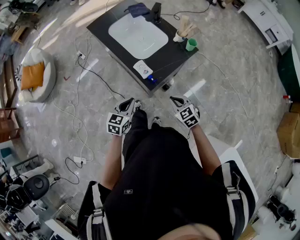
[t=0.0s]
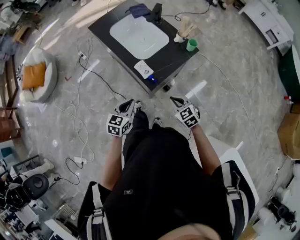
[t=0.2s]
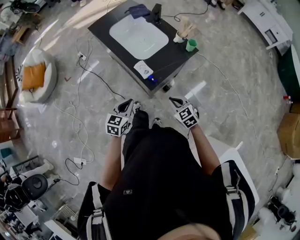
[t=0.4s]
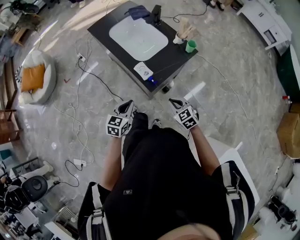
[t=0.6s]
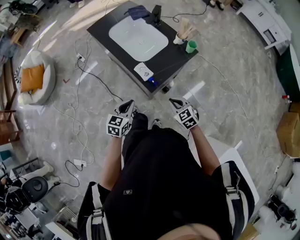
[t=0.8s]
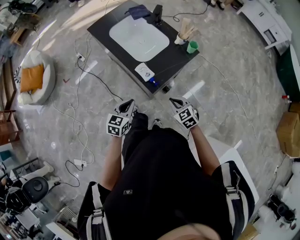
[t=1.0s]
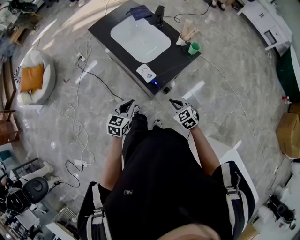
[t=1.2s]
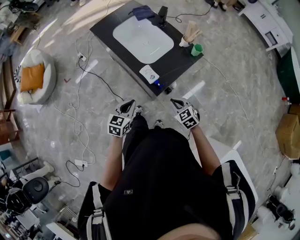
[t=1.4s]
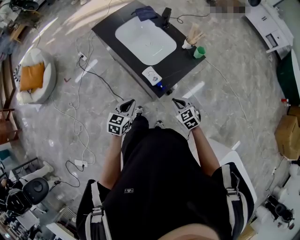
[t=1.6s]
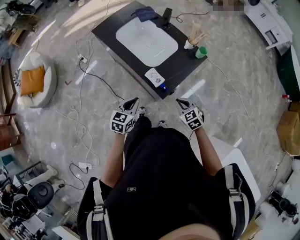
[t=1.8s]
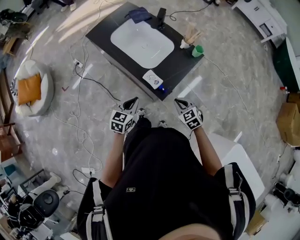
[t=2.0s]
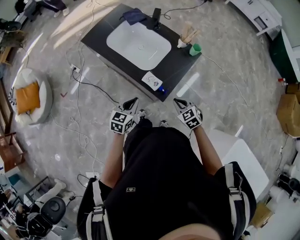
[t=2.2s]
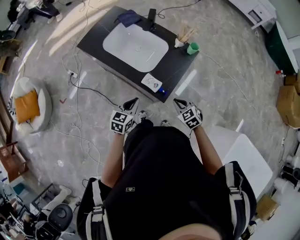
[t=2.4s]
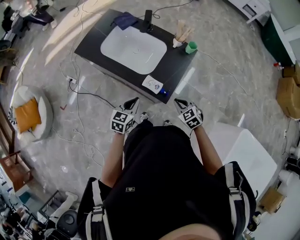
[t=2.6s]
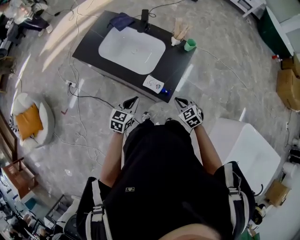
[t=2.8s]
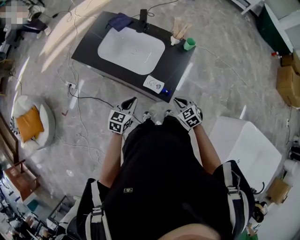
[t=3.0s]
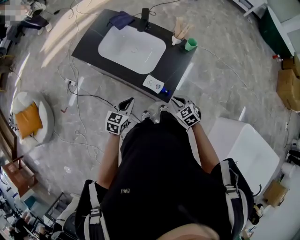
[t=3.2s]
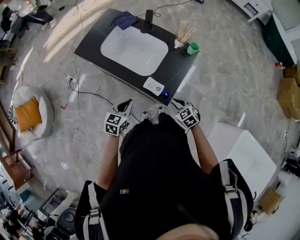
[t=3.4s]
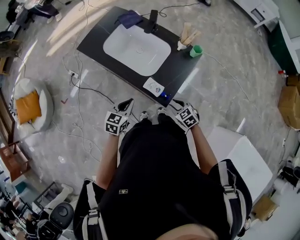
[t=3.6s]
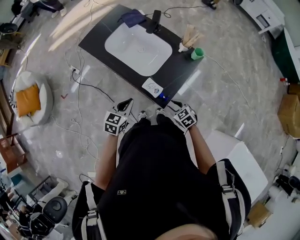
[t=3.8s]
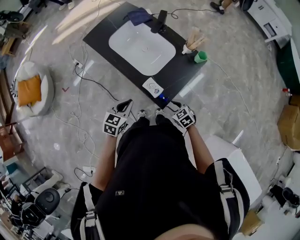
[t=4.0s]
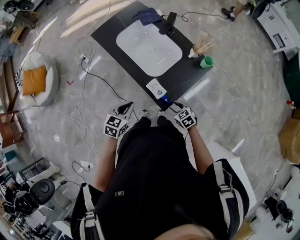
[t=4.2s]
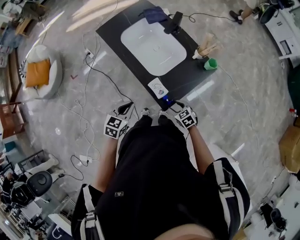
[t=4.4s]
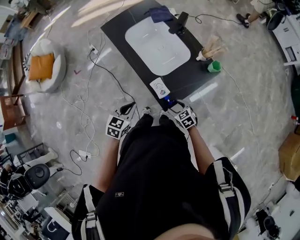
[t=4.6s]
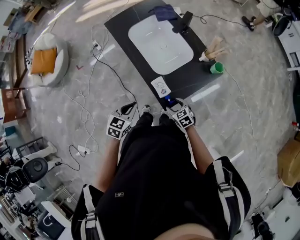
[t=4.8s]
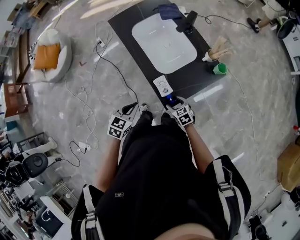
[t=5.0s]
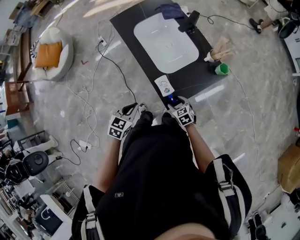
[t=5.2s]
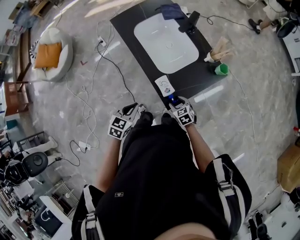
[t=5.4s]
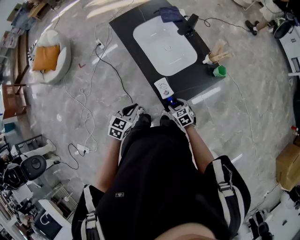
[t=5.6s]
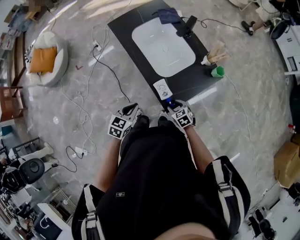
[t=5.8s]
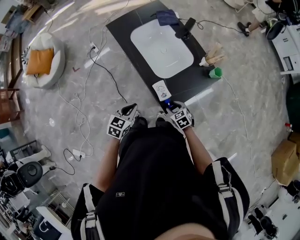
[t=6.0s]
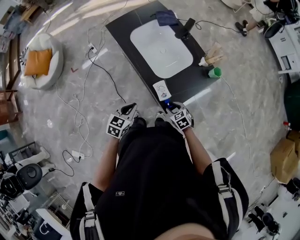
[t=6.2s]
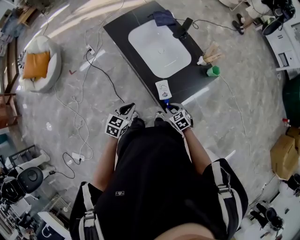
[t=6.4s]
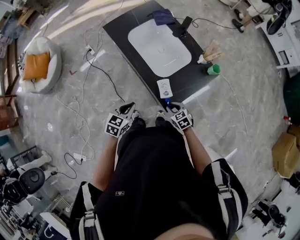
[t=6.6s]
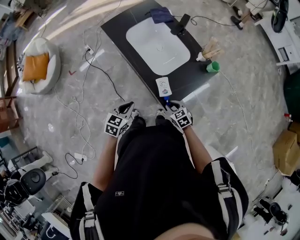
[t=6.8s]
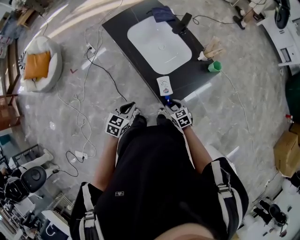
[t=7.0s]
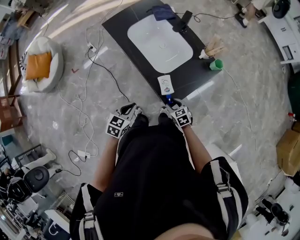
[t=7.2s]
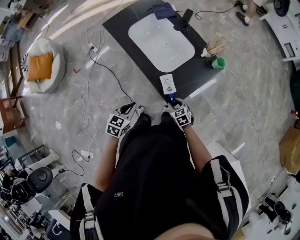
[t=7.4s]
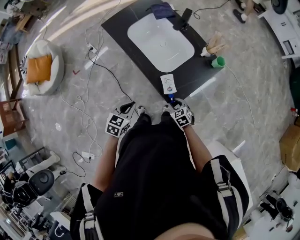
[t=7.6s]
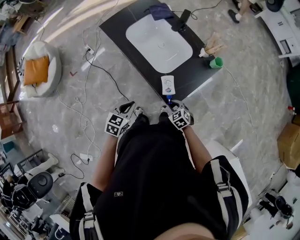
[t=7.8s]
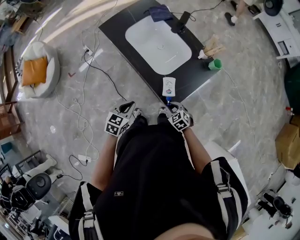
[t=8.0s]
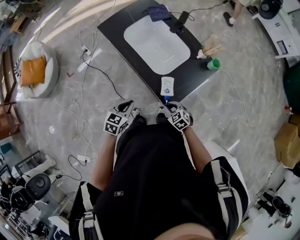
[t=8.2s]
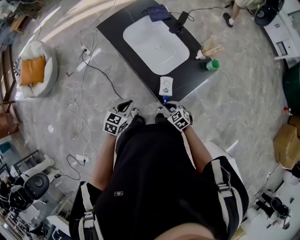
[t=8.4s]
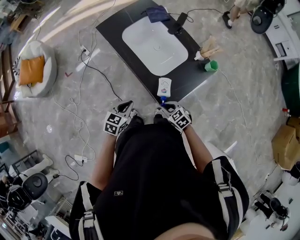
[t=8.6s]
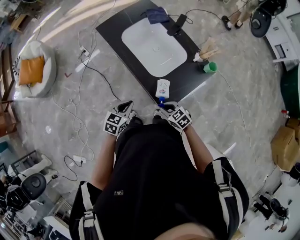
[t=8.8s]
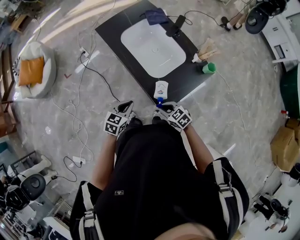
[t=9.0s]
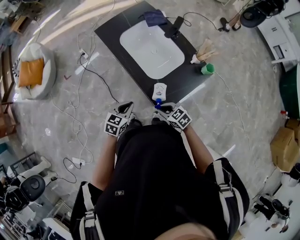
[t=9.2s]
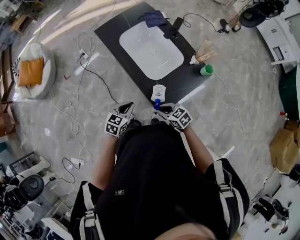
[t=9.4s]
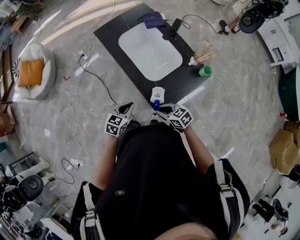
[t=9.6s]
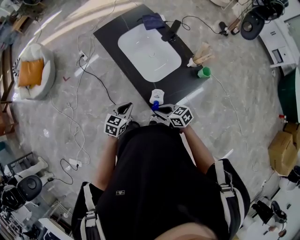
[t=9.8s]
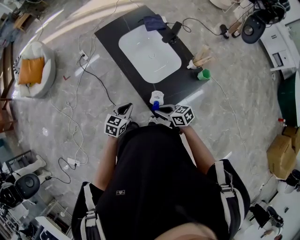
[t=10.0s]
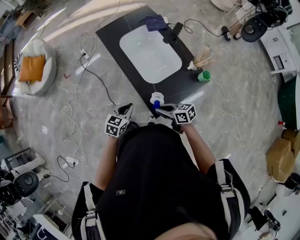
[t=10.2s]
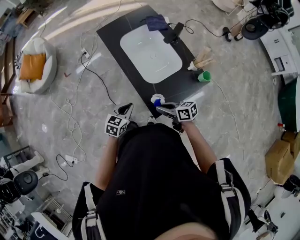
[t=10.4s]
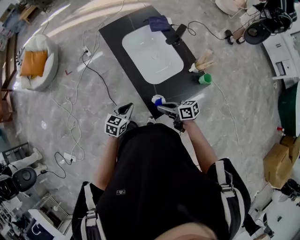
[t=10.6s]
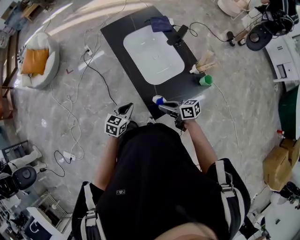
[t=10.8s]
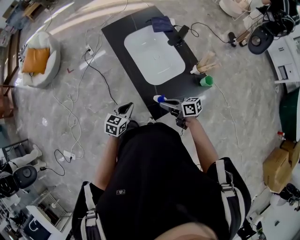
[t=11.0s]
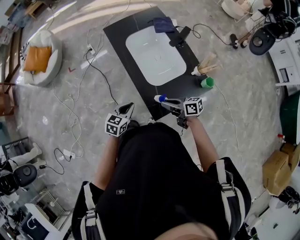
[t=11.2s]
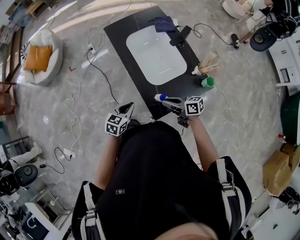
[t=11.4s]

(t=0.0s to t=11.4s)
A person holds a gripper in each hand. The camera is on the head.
t=0.0s - t=1.4s: The grippers make only small movements.
t=1.4s - t=2.8s: The left gripper heads forward and to the left, covering roughly 15 cm, and rotates approximately 20 degrees, while the right gripper moves about 5 cm, and swivels about 20 degrees.
t=2.8s - t=4.2s: The right gripper is displaced downward by roughly 10 cm, swivels approximately 20 degrees, and opens its fingers.
t=4.2s - t=5.6s: The right gripper moves approximately 5 cm.
t=5.6s - t=7.2s: The grippers stay close to where they were, moving slightly.
t=7.2s - t=8.6s: The right gripper closes up.
t=8.6s - t=10.0s: The right gripper heads upward, covering roughly 10 cm, and rotates about 30 degrees.
t=10.0s - t=11.4s: The right gripper is displaced to the right and forward by some 10 cm, and rotates approximately 20 degrees.

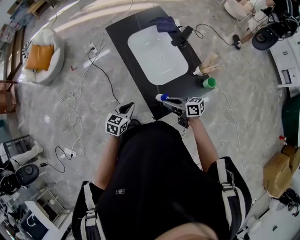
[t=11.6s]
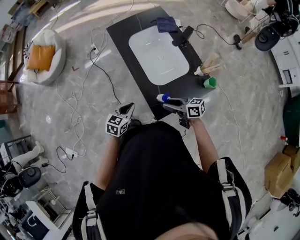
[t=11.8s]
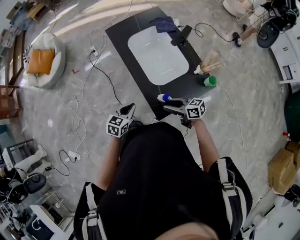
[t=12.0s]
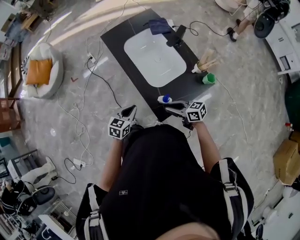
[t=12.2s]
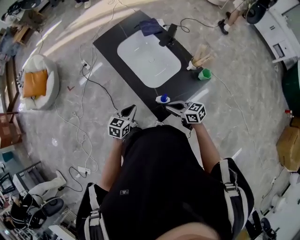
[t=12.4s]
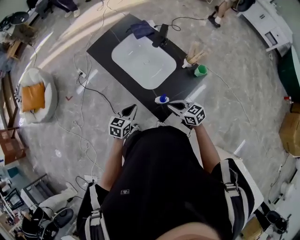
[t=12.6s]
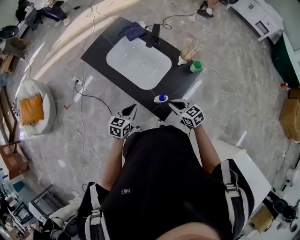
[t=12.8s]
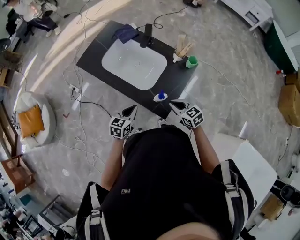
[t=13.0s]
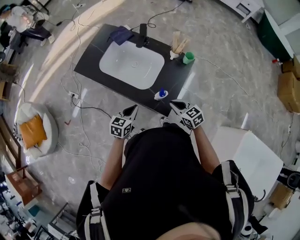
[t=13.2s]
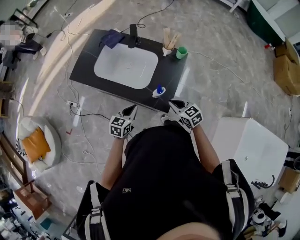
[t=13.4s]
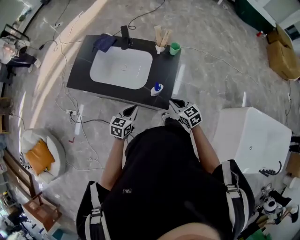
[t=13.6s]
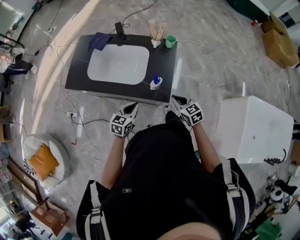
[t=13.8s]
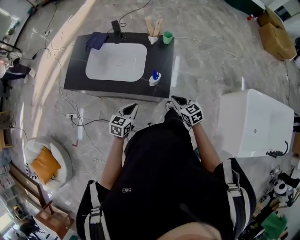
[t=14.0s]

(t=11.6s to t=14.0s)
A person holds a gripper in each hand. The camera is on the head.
t=11.6s - t=12.8s: The right gripper turns by about 40 degrees. Meanwhile the left gripper changes place by roughly 5 cm, and changes its angle by approximately 20 degrees.
t=12.8s - t=14.0s: The right gripper shifts by roughly 10 cm, and changes its angle by some 40 degrees. Meanwhile the left gripper turns by some 30 degrees.

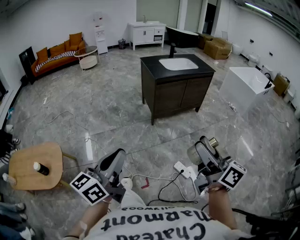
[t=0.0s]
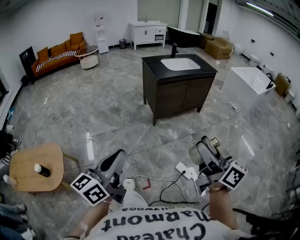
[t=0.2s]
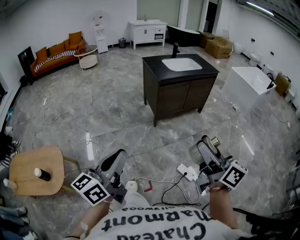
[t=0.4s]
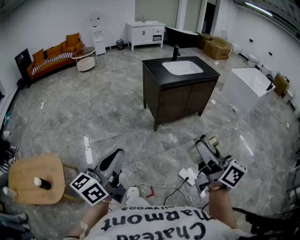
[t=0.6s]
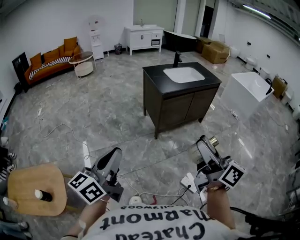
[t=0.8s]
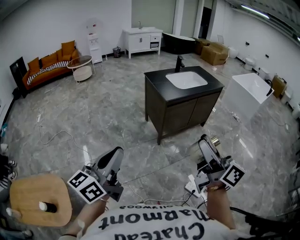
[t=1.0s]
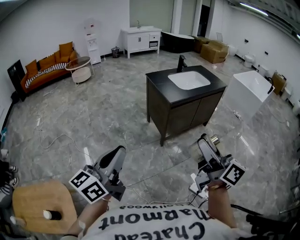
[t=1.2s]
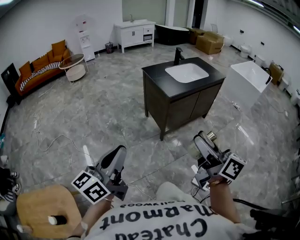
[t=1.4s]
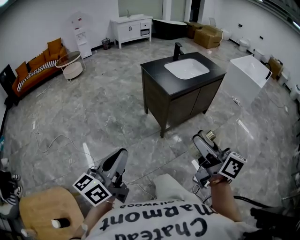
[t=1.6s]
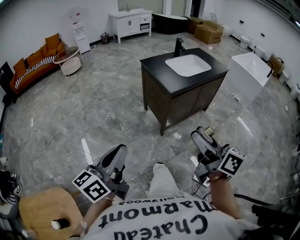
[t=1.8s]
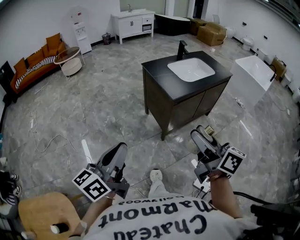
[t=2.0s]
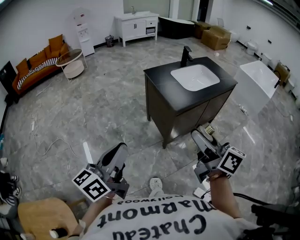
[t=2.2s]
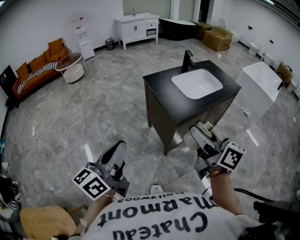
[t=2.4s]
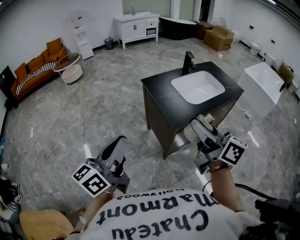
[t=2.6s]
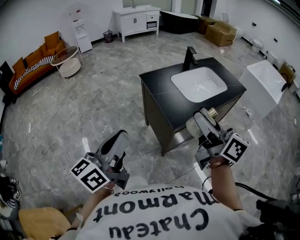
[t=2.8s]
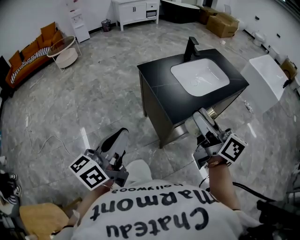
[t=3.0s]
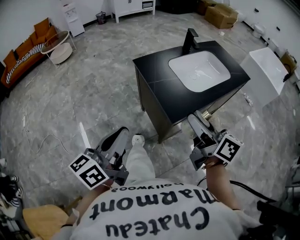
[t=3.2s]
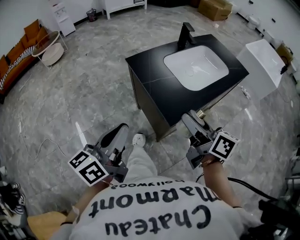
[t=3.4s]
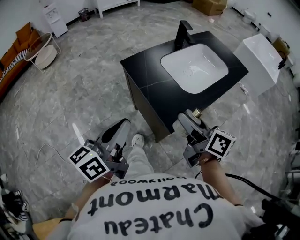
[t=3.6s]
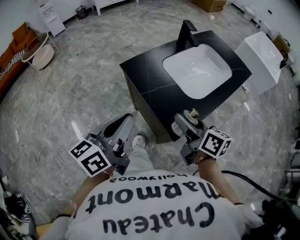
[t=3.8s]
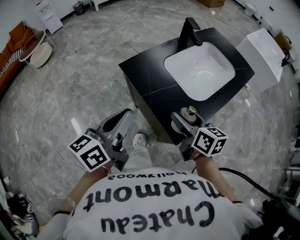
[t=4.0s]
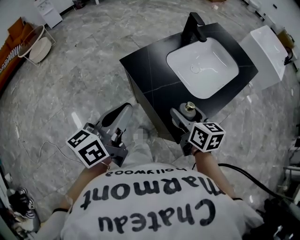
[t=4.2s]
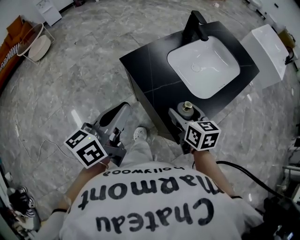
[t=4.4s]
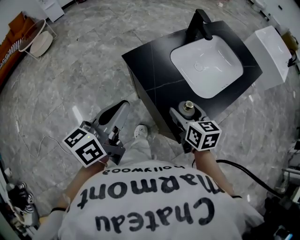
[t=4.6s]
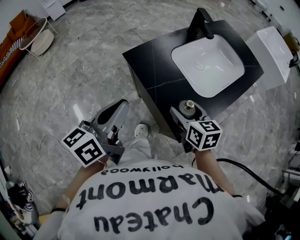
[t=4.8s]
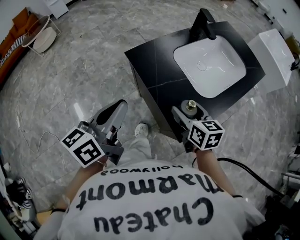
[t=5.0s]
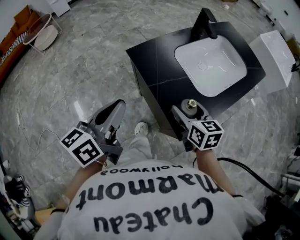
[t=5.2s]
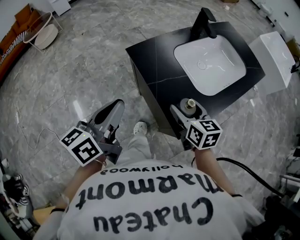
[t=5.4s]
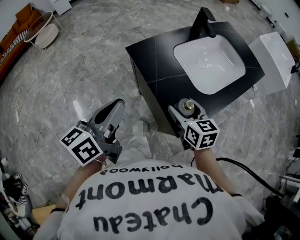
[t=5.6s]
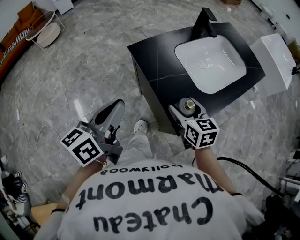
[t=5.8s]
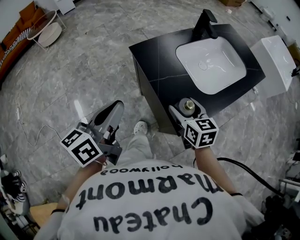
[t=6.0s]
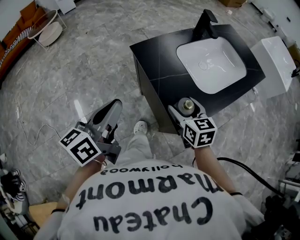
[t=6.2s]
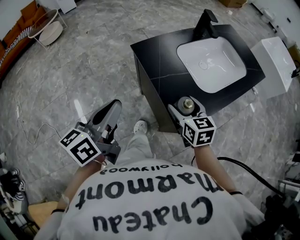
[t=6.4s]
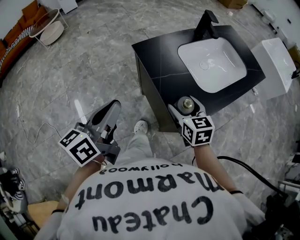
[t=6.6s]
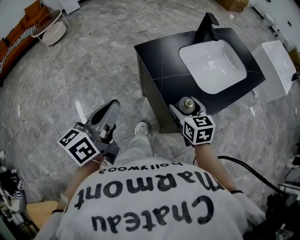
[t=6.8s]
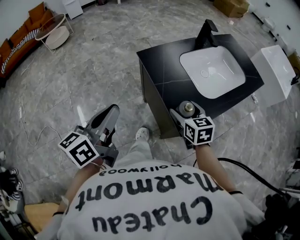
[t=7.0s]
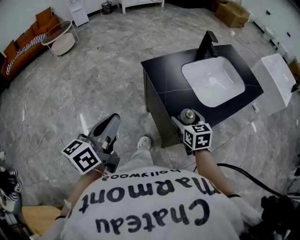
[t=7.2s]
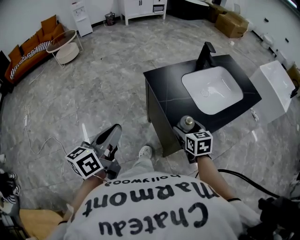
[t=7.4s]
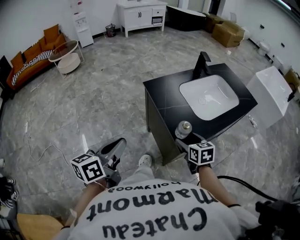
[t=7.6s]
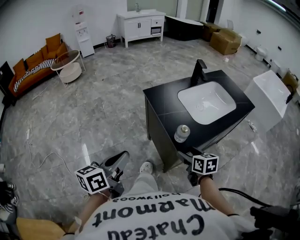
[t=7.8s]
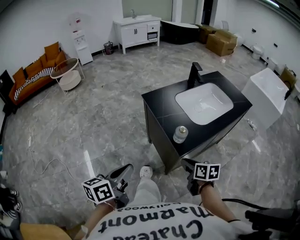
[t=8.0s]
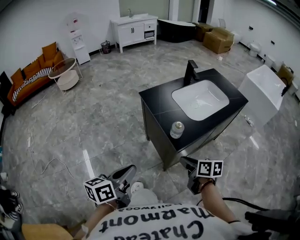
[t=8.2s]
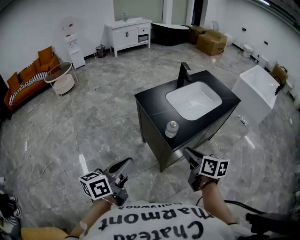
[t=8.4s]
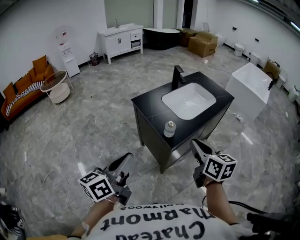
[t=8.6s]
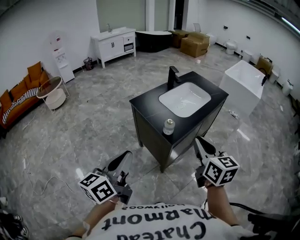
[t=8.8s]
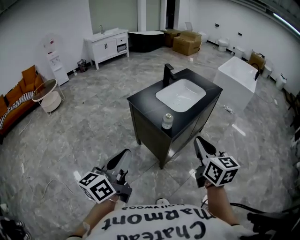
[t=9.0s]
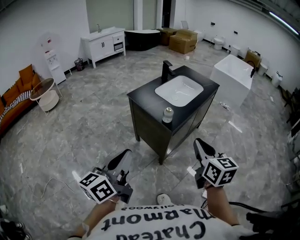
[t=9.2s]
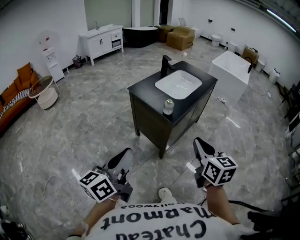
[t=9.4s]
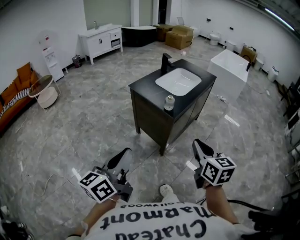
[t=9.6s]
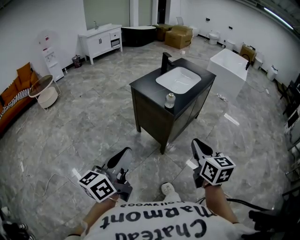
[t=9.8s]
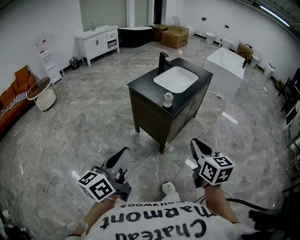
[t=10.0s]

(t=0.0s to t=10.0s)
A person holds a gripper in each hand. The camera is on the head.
t=0.0s - t=1.4s: The two grippers go about 35 cm forward and to the left.
t=1.4s - t=2.8s: The grippers both shift forward by roughly 40 cm.
t=2.8s - t=4.2s: The left gripper is displaced forward by about 30 cm, and changes its angle by about 20 degrees; the right gripper heads forward and downward, covering roughly 35 cm, and angles its fingers downward, by roughly 40 degrees.
t=4.2s - t=5.8s: The left gripper shifts by roughly 5 cm.
t=5.8s - t=7.2s: The left gripper goes some 10 cm backward and to the left.
t=7.2s - t=8.6s: The left gripper goes some 20 cm backward and upward, while the right gripper shifts approximately 30 cm backward and upward, changes its angle by some 30 degrees, and closes.
t=8.6s - t=10.0s: The left gripper is displaced backward and to the left by about 20 cm. Meanwhile the right gripper is displaced backward by some 25 cm.
